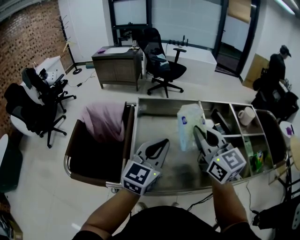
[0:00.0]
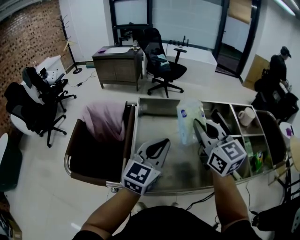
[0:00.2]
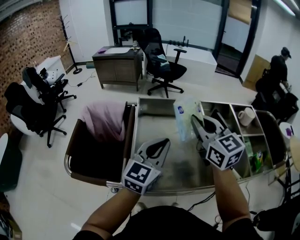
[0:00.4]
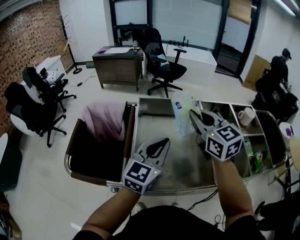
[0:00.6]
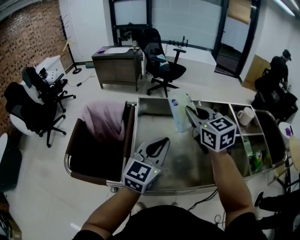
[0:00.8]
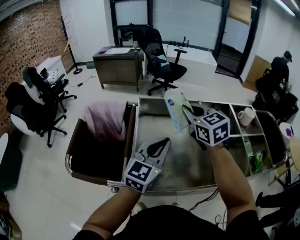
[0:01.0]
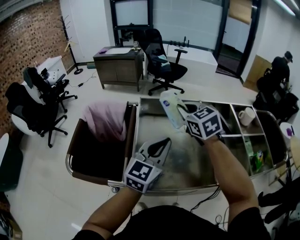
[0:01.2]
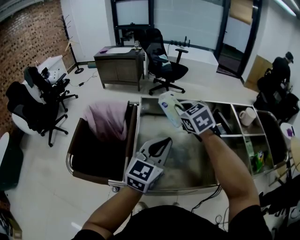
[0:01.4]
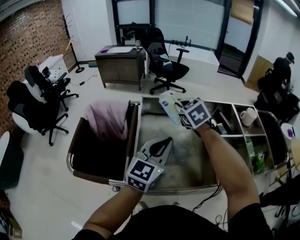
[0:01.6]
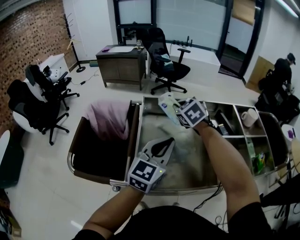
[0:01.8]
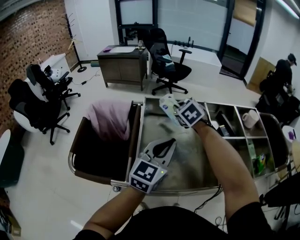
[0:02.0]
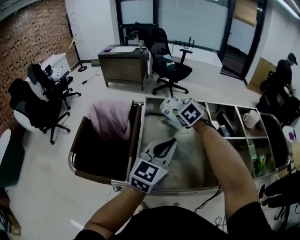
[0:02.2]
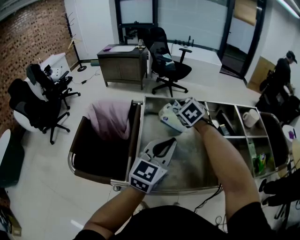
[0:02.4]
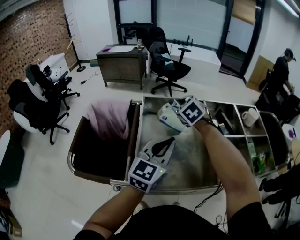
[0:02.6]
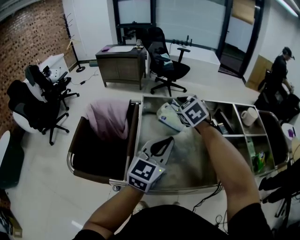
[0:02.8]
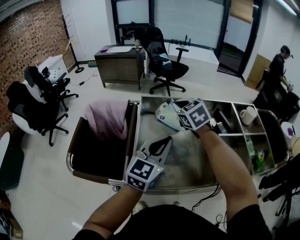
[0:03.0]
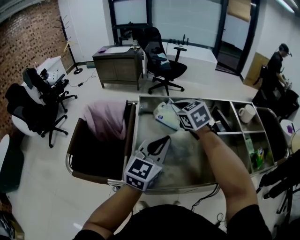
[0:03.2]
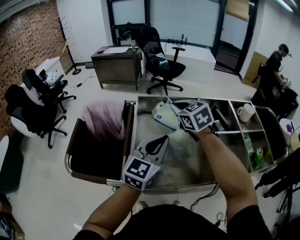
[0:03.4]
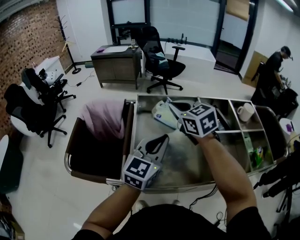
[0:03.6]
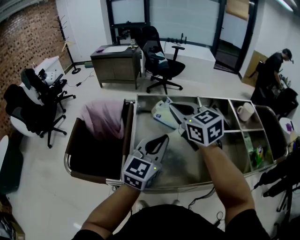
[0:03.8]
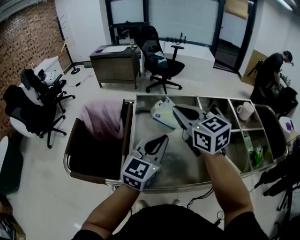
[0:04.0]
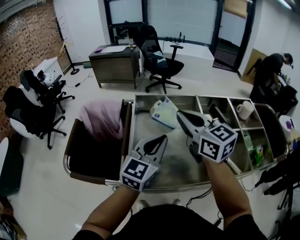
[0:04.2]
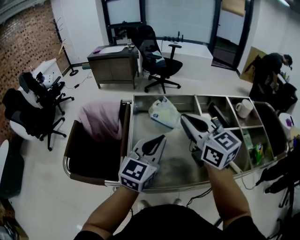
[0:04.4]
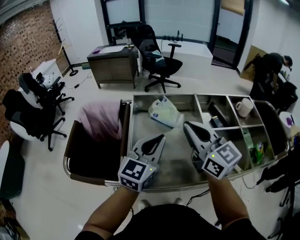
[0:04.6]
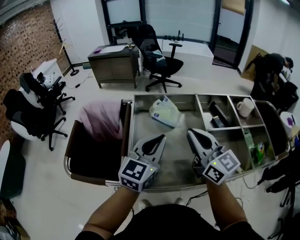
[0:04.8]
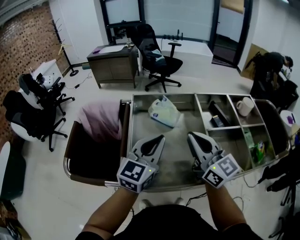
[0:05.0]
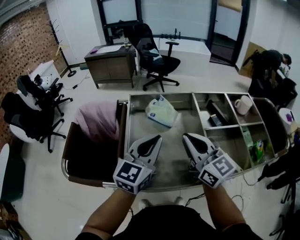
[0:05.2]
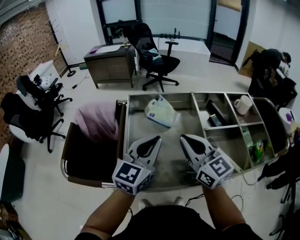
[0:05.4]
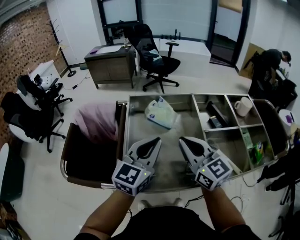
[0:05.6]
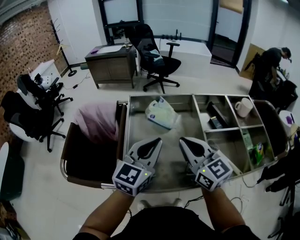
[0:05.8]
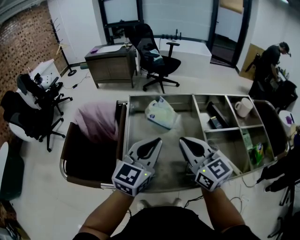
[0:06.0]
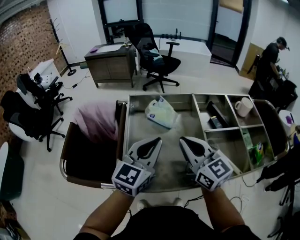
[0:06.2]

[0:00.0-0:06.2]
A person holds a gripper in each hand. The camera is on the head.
0:00.0 to 0:01.6: The right gripper shifts about 20 cm forward, to the left and downward, and angles its fingers downward, by approximately 30 degrees.
0:01.6 to 0:03.2: The right gripper opens, then closes once more.
0:03.2 to 0:04.6: The right gripper heads backward and upward, covering some 20 cm, and tips its fingers upward by roughly 30 degrees.
0:04.6 to 0:06.2: The right gripper shifts about 5 cm downward.

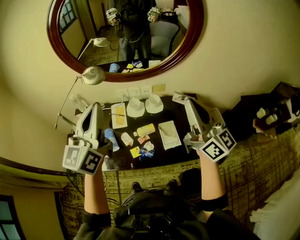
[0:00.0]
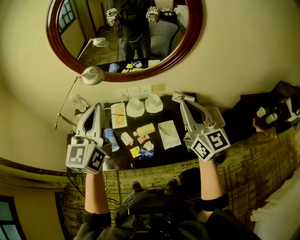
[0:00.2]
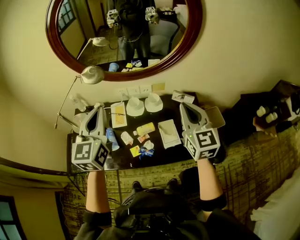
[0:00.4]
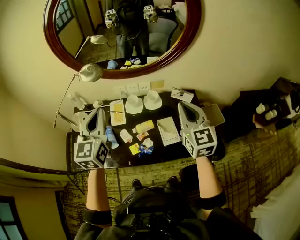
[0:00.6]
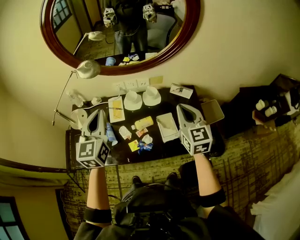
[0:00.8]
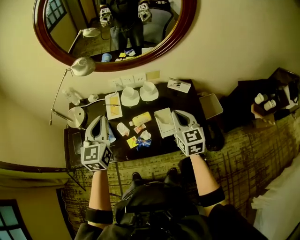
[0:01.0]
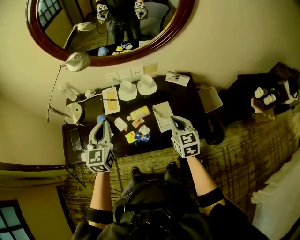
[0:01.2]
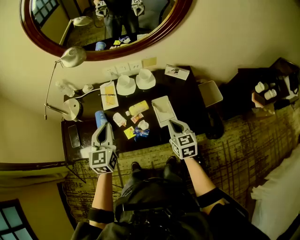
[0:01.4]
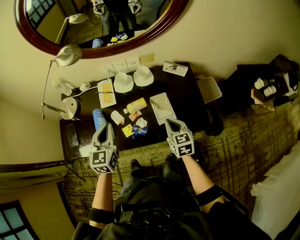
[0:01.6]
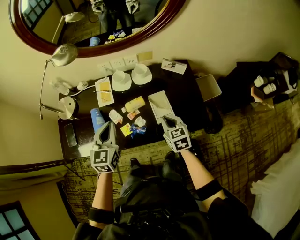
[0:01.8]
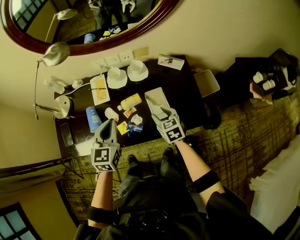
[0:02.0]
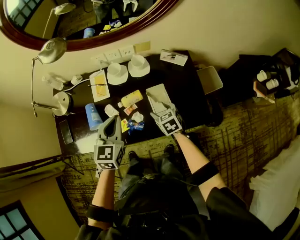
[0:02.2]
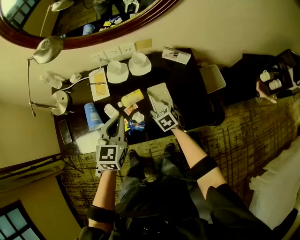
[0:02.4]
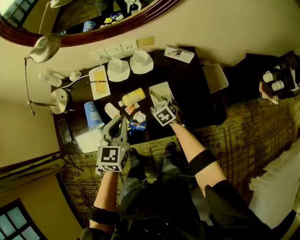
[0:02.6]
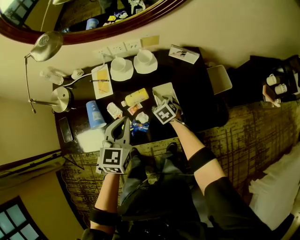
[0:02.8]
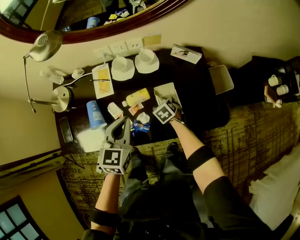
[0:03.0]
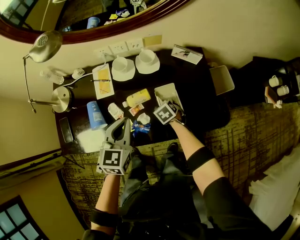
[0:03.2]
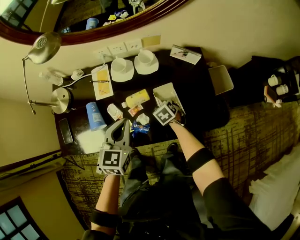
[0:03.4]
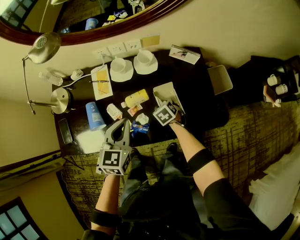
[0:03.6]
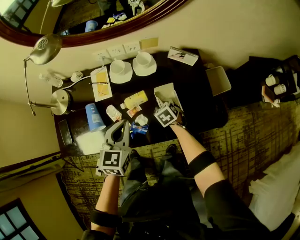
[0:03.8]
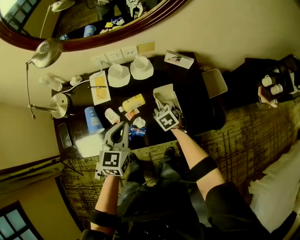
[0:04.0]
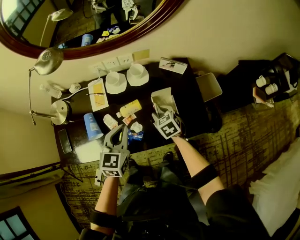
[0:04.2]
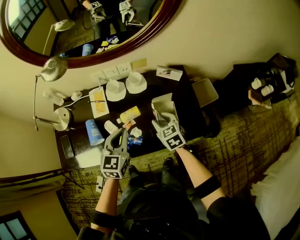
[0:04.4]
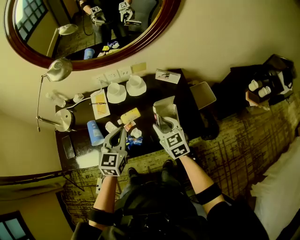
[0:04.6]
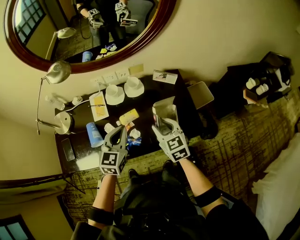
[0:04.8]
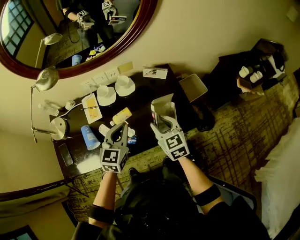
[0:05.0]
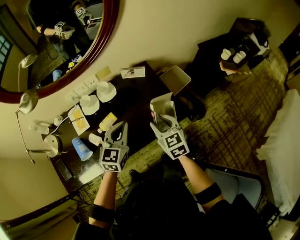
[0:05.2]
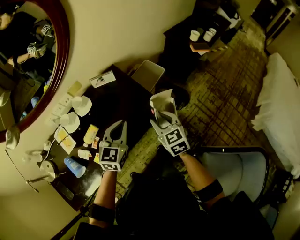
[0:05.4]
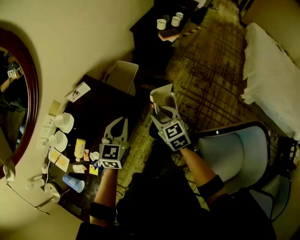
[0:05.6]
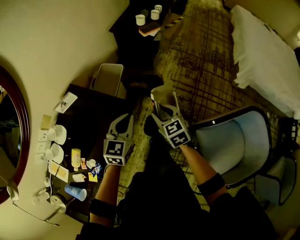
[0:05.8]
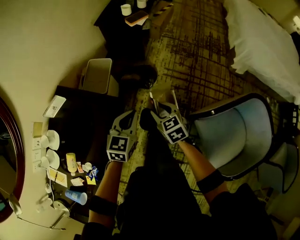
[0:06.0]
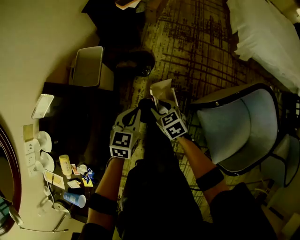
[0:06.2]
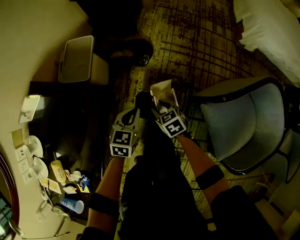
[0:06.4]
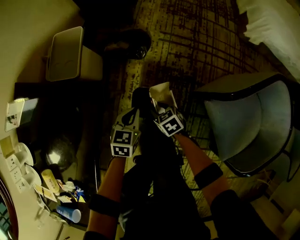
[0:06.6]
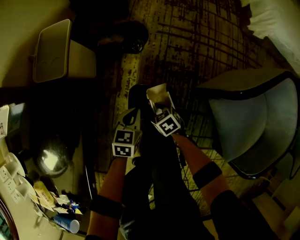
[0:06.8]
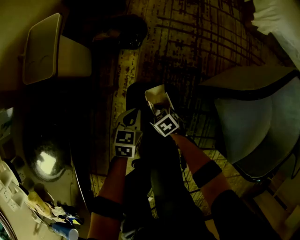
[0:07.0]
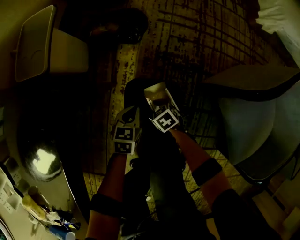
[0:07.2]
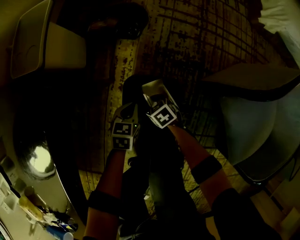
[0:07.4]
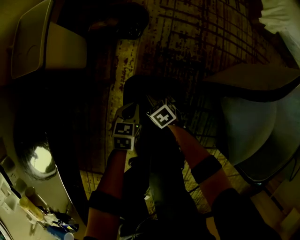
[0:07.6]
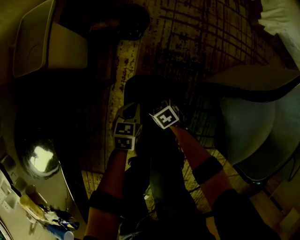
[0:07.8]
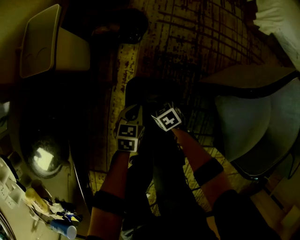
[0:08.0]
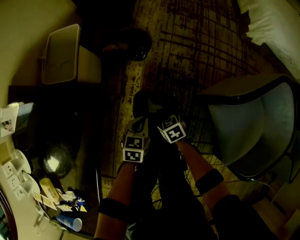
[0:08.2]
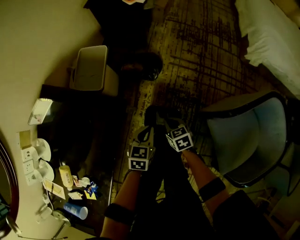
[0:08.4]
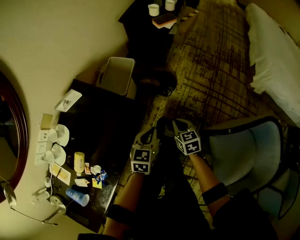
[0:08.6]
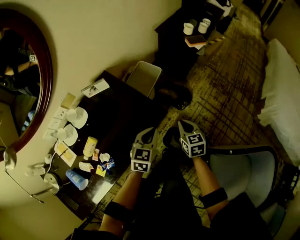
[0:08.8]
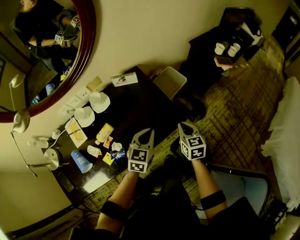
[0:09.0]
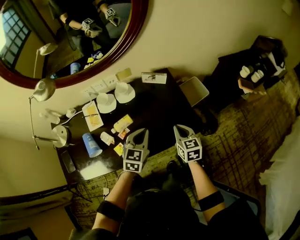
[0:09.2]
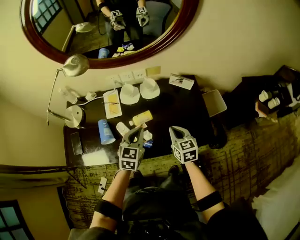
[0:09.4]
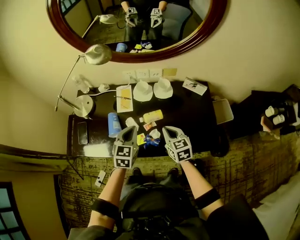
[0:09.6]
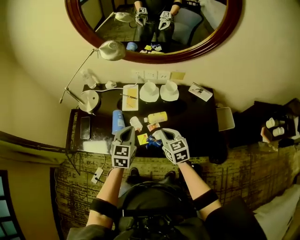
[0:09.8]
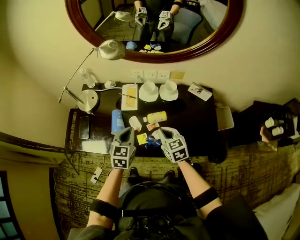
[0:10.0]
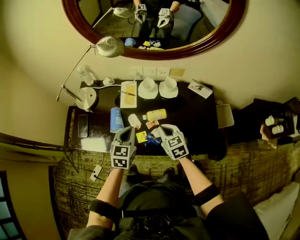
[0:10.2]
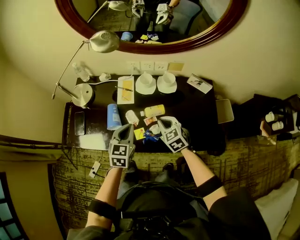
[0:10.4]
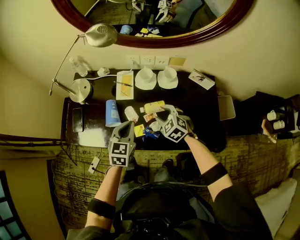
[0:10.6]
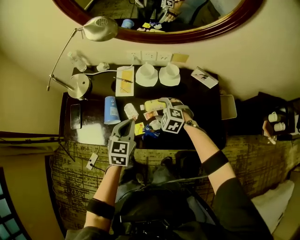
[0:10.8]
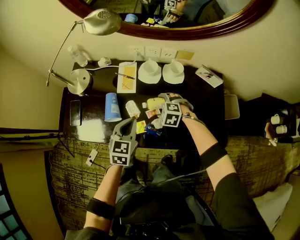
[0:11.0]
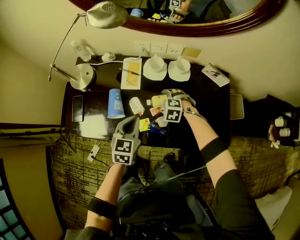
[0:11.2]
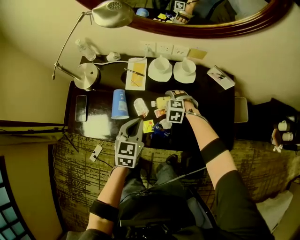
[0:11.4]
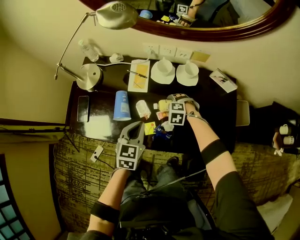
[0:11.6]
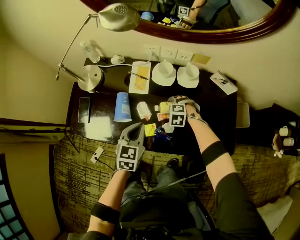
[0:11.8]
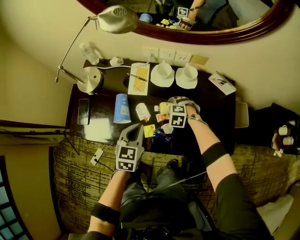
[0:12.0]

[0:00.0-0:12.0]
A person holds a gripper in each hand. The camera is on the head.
0:00.0 to 0:01.6: Both grippers travel together downward, roughly 35 cm. The right gripper tilts its fingers some 50 degrees downward; the left gripper tips its fingers downward by roughly 30 degrees.
0:01.6 to 0:03.0: The left gripper is displaced to the right and downward by roughly 10 cm. Meanwhile the right gripper is displaced downward and forward by some 25 cm, points its fingers about 30 degrees further downward, and opens up.
0:03.0 to 0:04.4: The right gripper is displaced upward by roughly 20 cm, and changes its angle by some 30 degrees.
0:04.4 to 0:06.0: The pair of grippers is taken about 50 cm. The right gripper rotates roughly 60 degrees. Meanwhile the left gripper turns by about 70 degrees.
0:06.0 to 0:07.6: Both grippers travel together downward, approximately 60 cm. The left gripper changes its angle by roughly 30 degrees, while the right gripper rotates about 30 degrees.
0:07.6 to 0:09.0: Both grippers move upward, roughly 60 cm. The right gripper tips its fingers upward by approximately 30 degrees, and closes, while the left gripper rotates roughly 50 degrees.
0:09.0 to 0:10.4: The left gripper shifts by approximately 40 cm, and changes its angle by approximately 50 degrees; the right gripper shifts by roughly 40 cm, and rotates about 60 degrees.
0:10.4 to 0:12.0: The left gripper goes approximately 5 cm downward; the right gripper shifts roughly 20 cm downward, tilts its fingers roughly 30 degrees downward, and opens up.

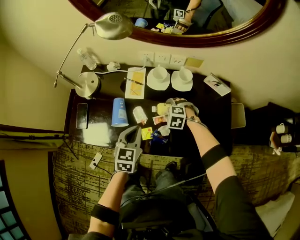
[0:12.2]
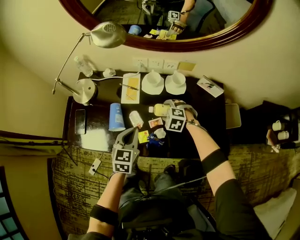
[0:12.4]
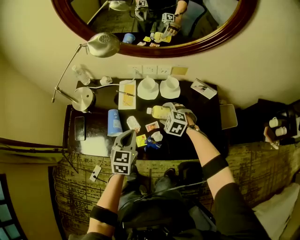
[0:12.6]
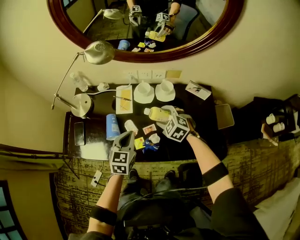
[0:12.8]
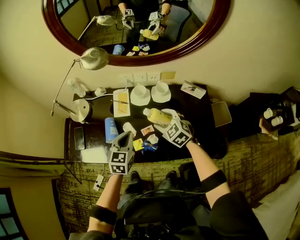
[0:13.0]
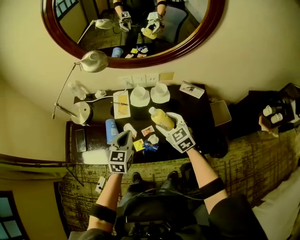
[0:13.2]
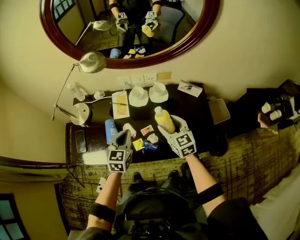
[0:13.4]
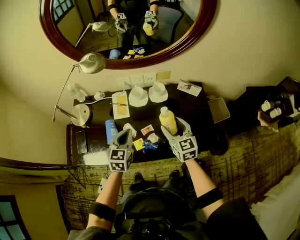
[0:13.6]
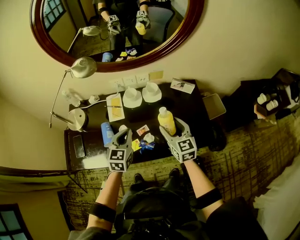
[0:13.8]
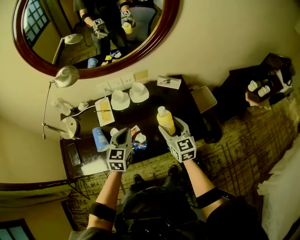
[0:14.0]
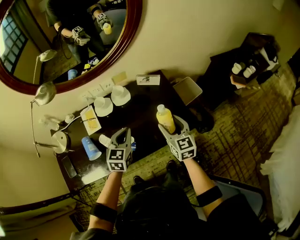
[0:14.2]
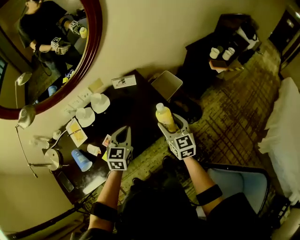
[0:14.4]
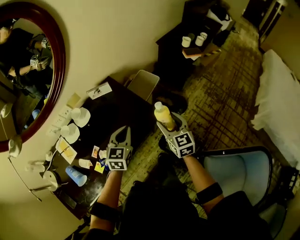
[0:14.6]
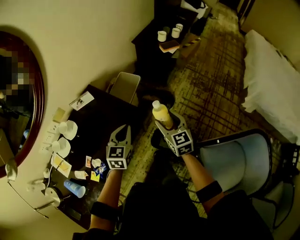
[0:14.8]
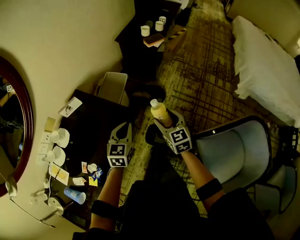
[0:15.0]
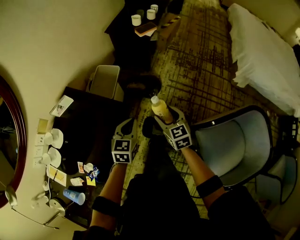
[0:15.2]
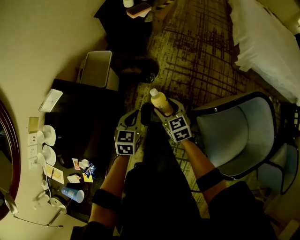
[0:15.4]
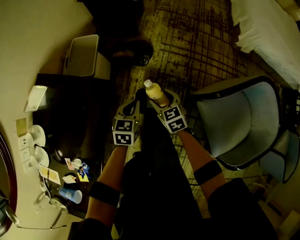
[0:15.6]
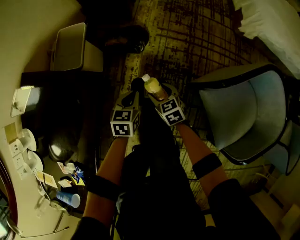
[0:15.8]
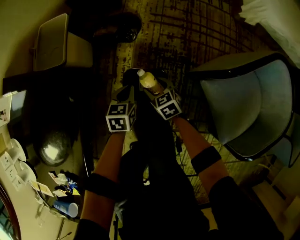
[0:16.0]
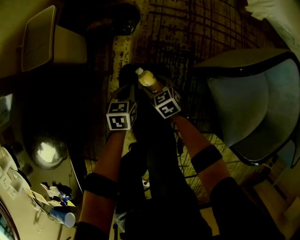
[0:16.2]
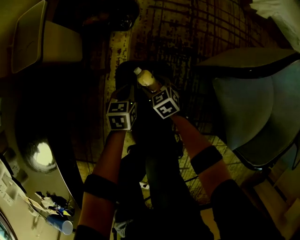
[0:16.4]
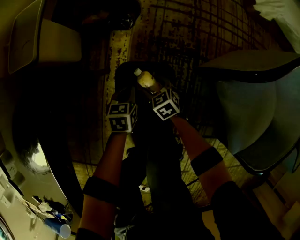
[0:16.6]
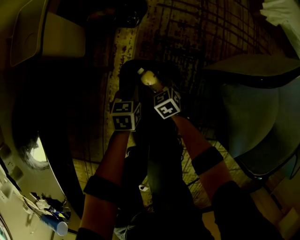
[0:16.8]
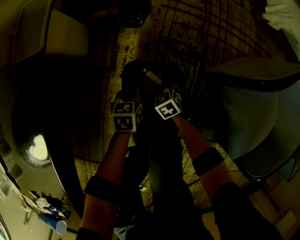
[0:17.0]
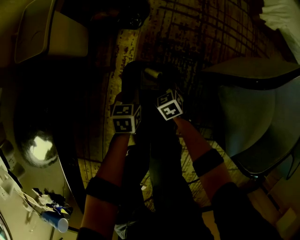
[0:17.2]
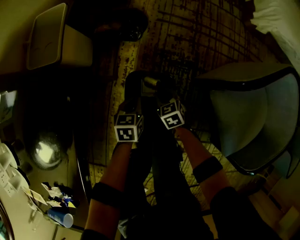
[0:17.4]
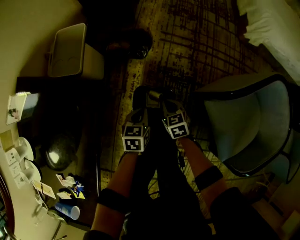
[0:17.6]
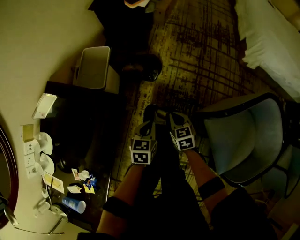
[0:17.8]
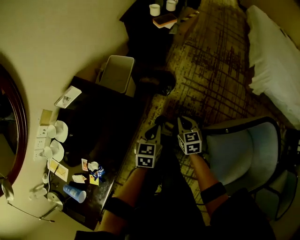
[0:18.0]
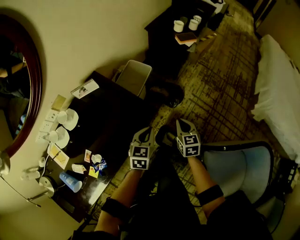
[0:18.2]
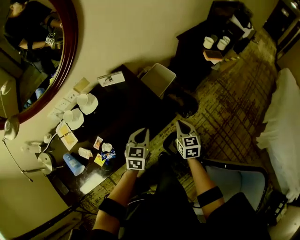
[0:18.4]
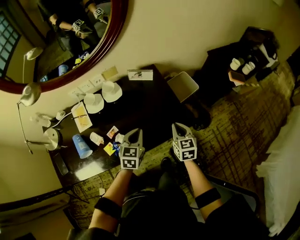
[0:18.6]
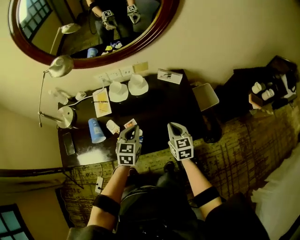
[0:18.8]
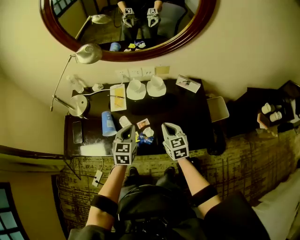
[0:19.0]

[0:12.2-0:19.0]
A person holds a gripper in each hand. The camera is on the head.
0:12.2 to 0:13.6: The right gripper travels upward and backward by roughly 25 cm, and angles its fingers upward, by about 50 degrees. The left gripper moves upward, approximately 10 cm.
0:13.6 to 0:15.0: The two grippers travel together, roughly 50 cm. The left gripper rotates some 60 degrees. The right gripper turns by about 60 degrees.
0:15.0 to 0:16.2: The grippers both shift downward by about 50 cm. The left gripper rotates approximately 30 degrees; the right gripper turns by some 30 degrees.
0:16.2 to 0:17.6: The grippers both shift upward by approximately 15 cm. The right gripper closes up.
0:17.6 to 0:19.0: Both grippers are carried roughly 60 cm. The left gripper swivels some 80 degrees; the right gripper turns by approximately 70 degrees.
